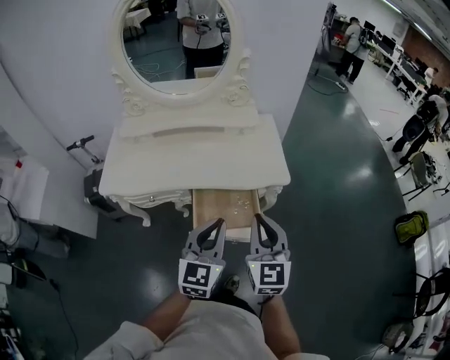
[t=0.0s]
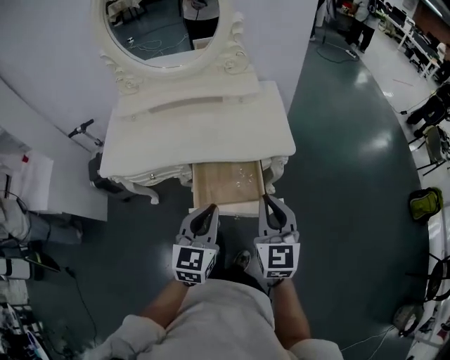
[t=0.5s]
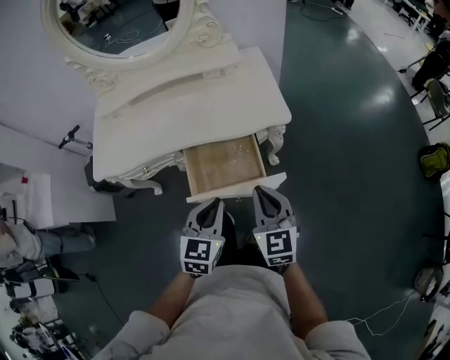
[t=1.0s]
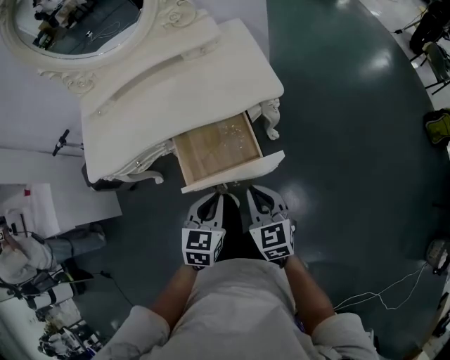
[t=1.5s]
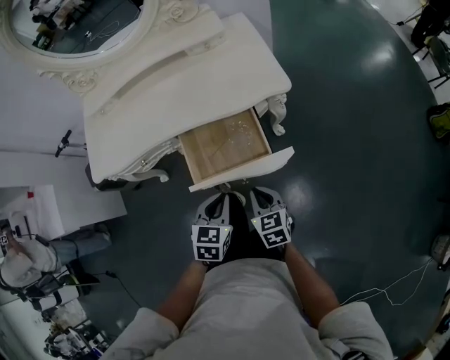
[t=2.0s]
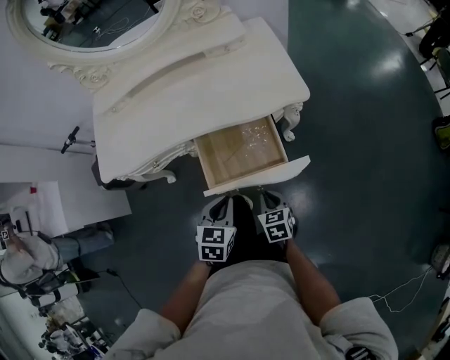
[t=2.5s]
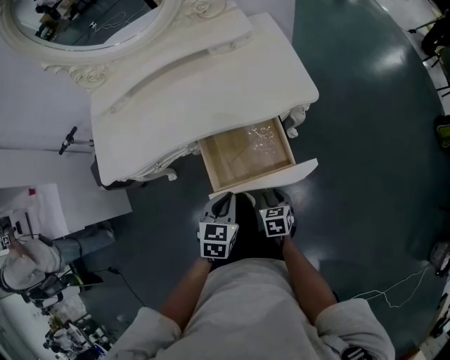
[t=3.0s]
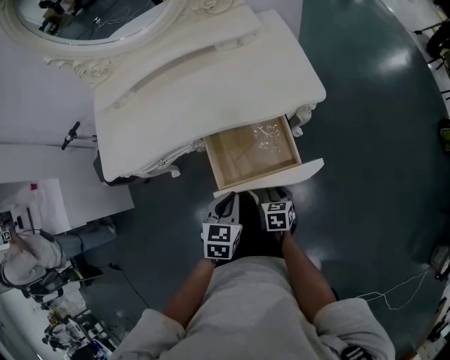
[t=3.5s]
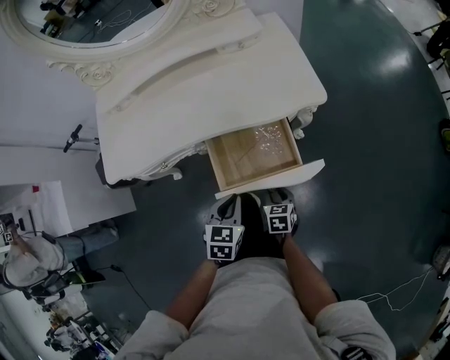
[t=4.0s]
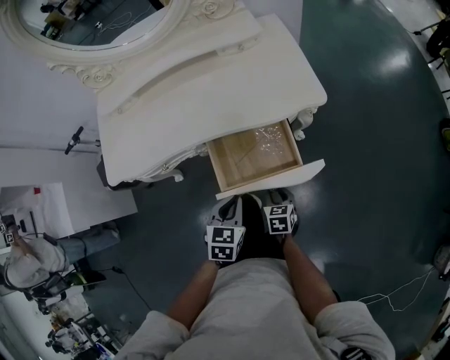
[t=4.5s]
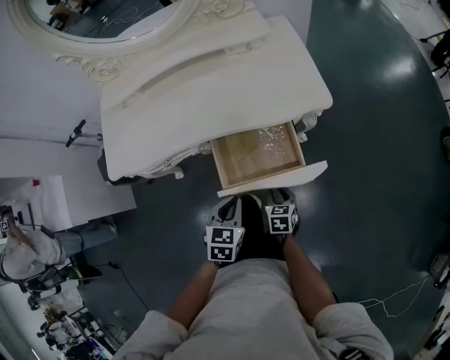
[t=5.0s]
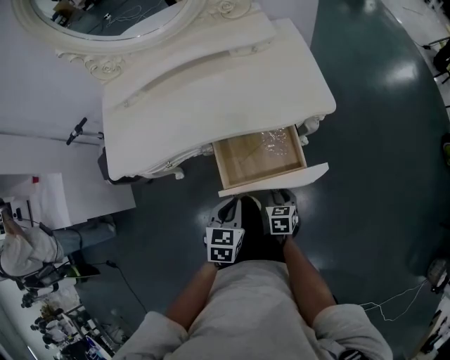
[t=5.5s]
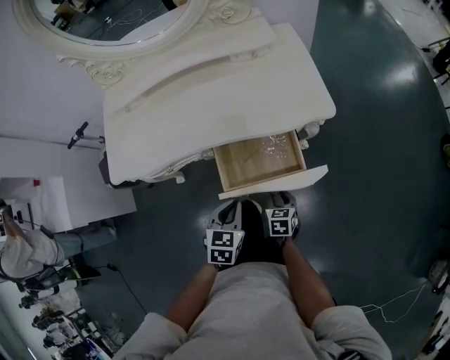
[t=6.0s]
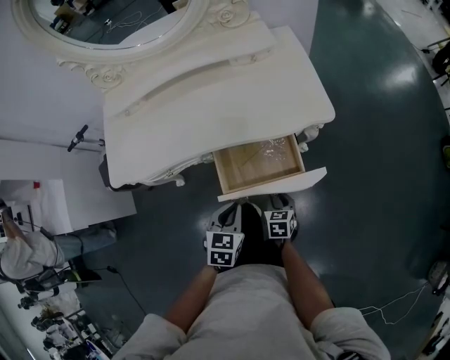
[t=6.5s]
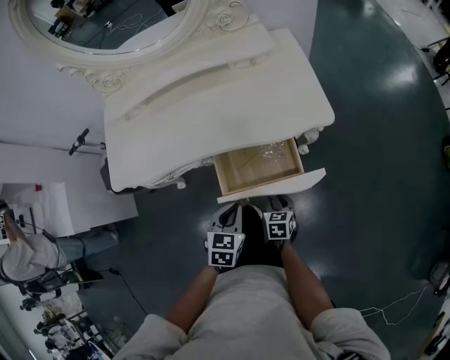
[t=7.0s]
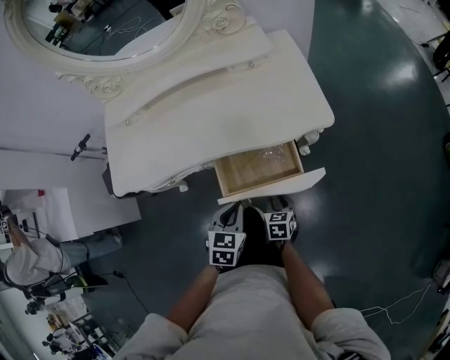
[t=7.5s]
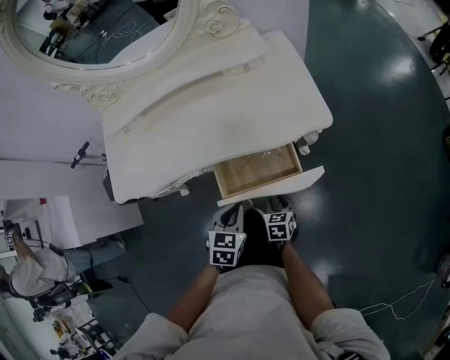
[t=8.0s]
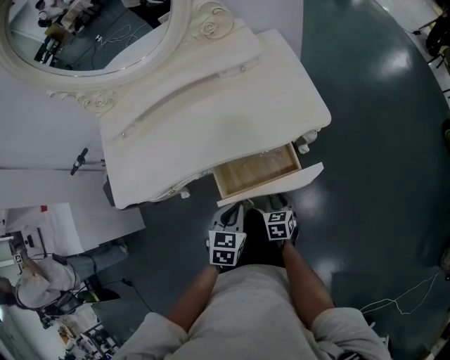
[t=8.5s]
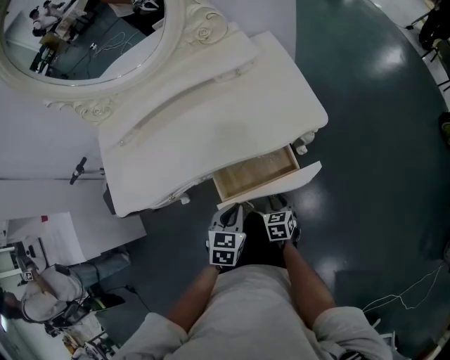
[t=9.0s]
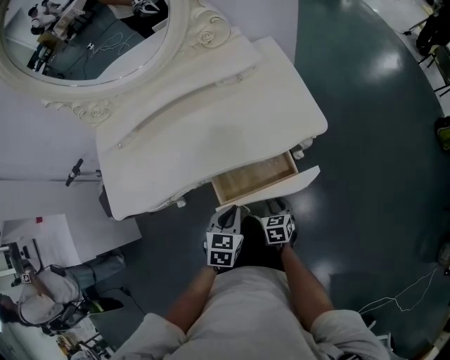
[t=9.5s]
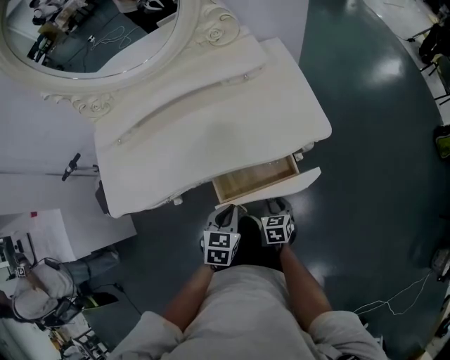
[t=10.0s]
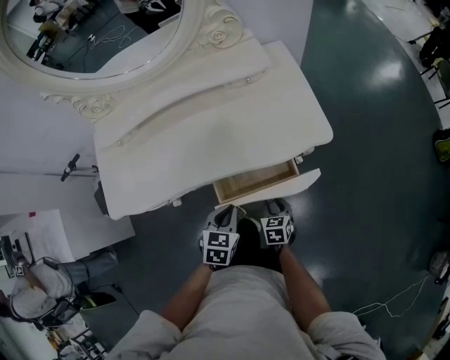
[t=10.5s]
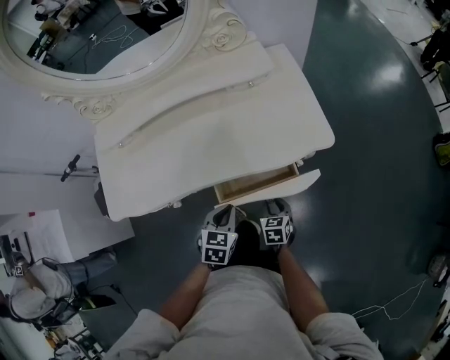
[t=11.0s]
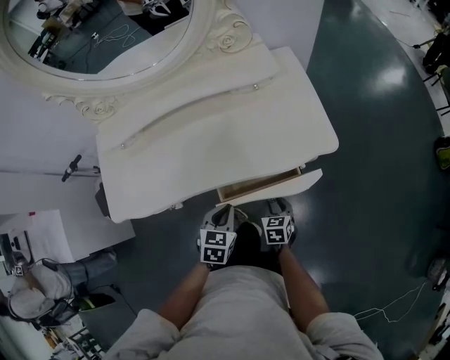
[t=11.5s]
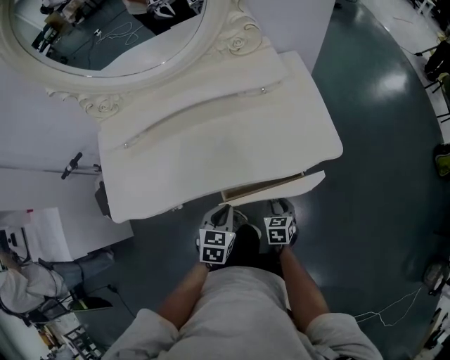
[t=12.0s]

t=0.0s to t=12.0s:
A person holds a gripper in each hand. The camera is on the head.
t=0.0s to t=2.0s: Both grippers travel together downward, some 30 cm. The left gripper tips its fingers downward by some 30 degrees. The right gripper tips its fingers downward by about 30 degrees.
t=2.0s to t=4.0s: The right gripper heads downward, covering some 10 cm, and opens up; the left gripper heads to the left, covering about 5 cm.
t=4.0s to t=8.0s: There are only small adjustments of the grippers.
t=8.0s to t=10.0s: There are only small adjustments of the grippers.
t=10.0s to t=12.0s: The right gripper moves forward, approximately 5 cm; the left gripper ends up approximately 5 cm from where it was.

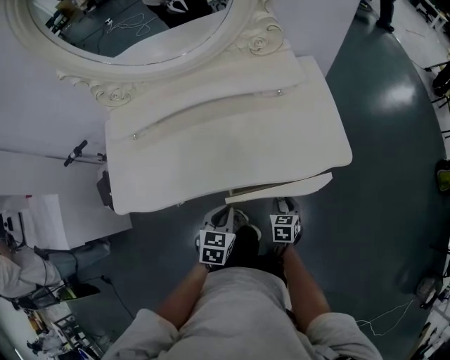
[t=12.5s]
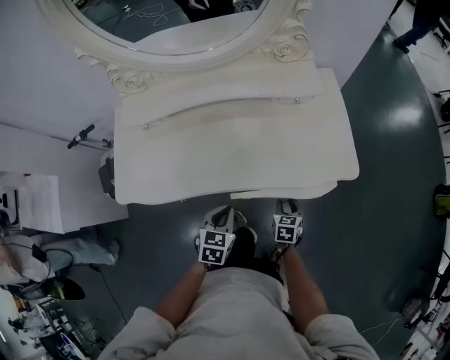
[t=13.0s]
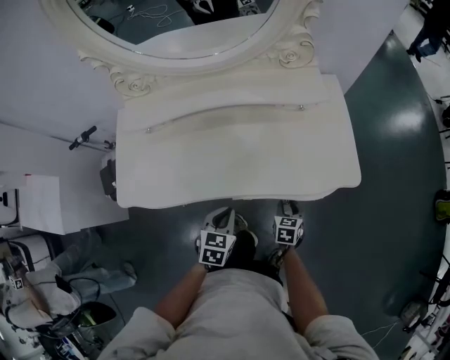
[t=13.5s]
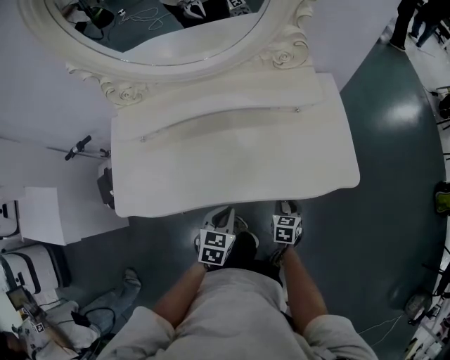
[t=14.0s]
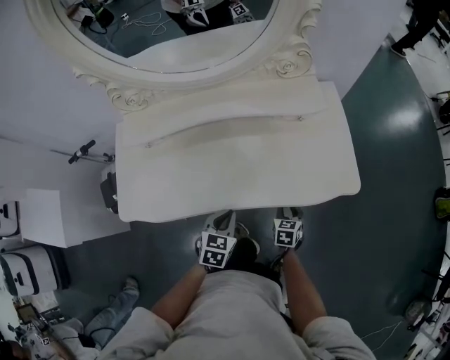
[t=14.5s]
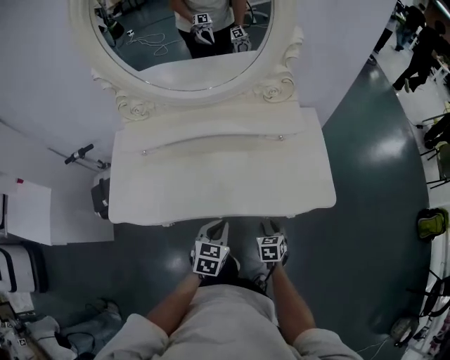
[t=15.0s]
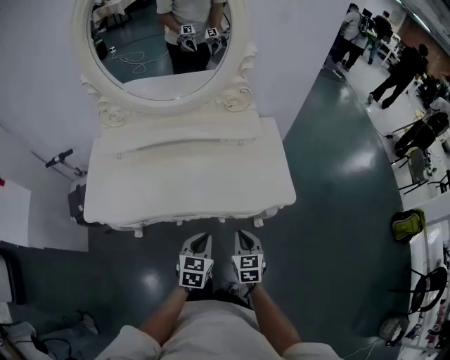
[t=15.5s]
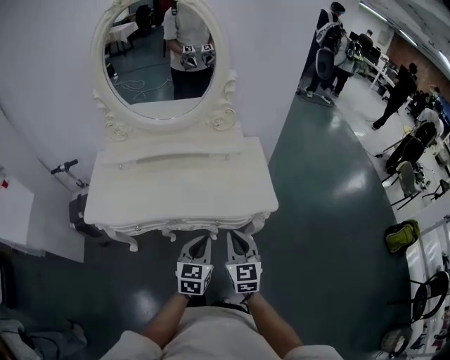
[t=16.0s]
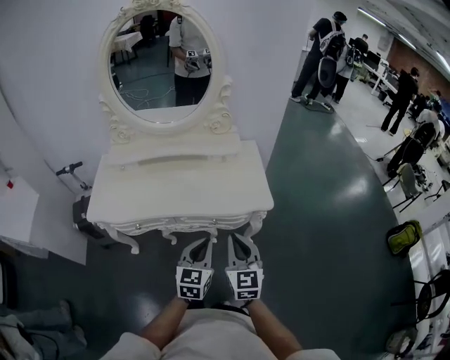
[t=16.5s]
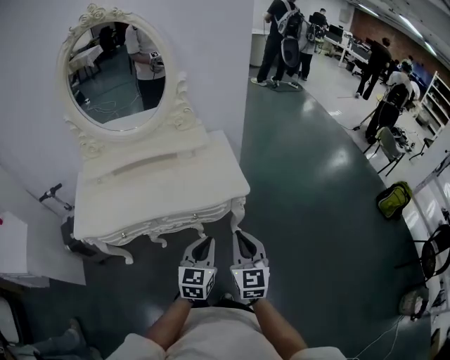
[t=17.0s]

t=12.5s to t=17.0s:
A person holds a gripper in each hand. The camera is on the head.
t=12.5s to t=14.5s: The right gripper heads forward, covering about 5 cm. The left gripper changes place by about 5 cm.
t=14.5s to t=17.0s: The left gripper moves to the right, upward and backward, approximately 40 cm, and tips its fingers upward by about 30 degrees; the right gripper travels upward, backward and to the right by approximately 50 cm, angles its fingers upward, by some 40 degrees, and closes its fingers.

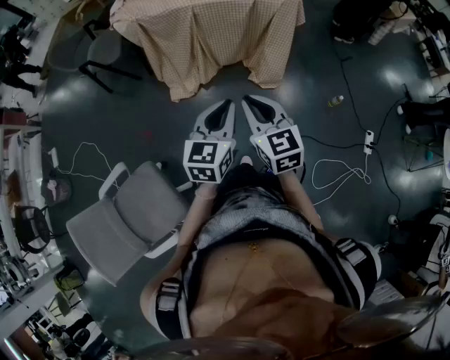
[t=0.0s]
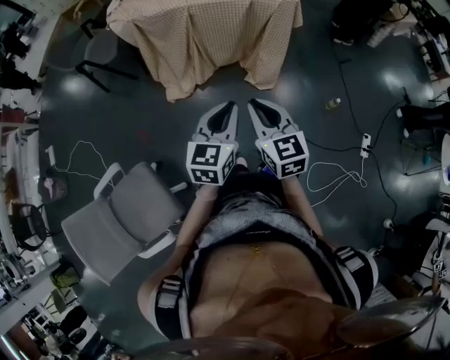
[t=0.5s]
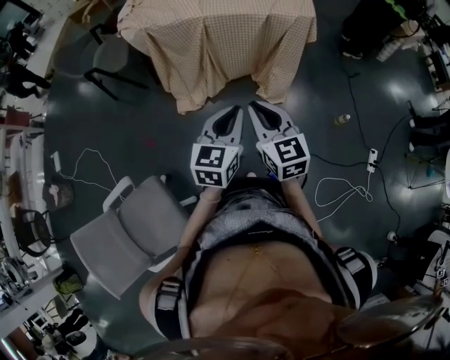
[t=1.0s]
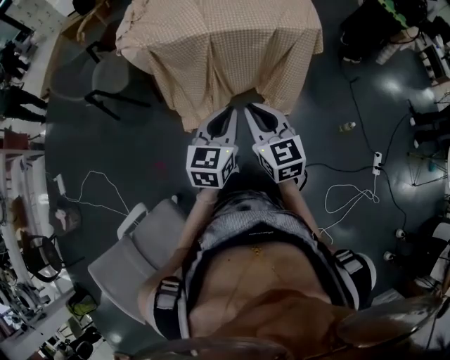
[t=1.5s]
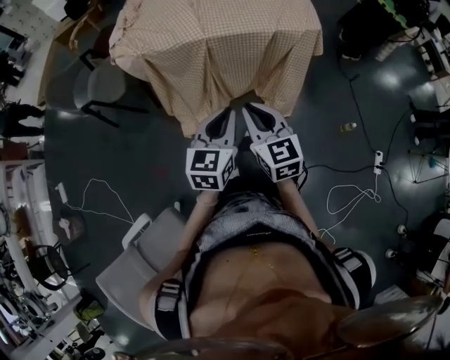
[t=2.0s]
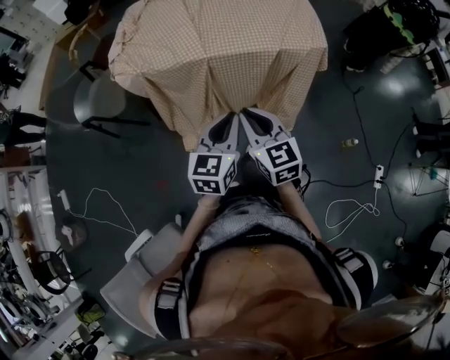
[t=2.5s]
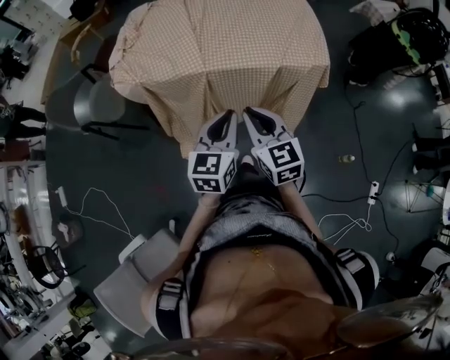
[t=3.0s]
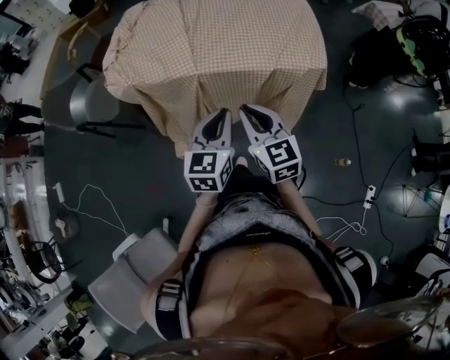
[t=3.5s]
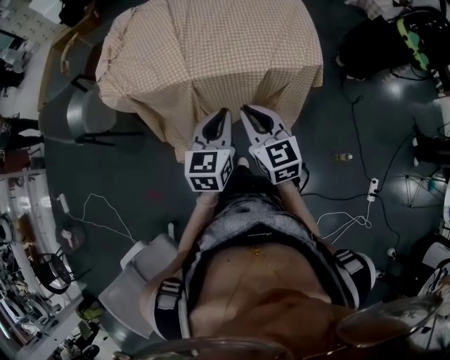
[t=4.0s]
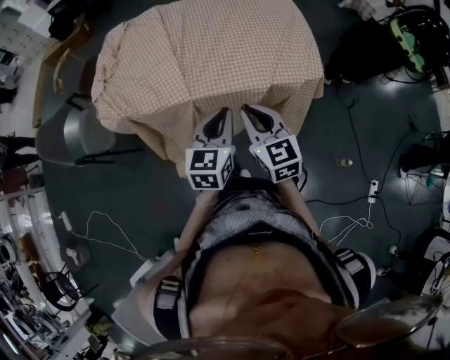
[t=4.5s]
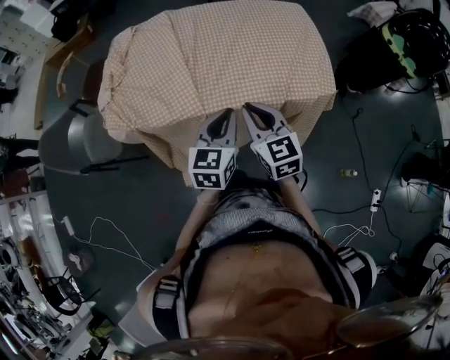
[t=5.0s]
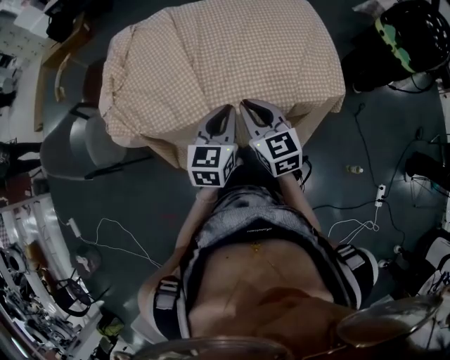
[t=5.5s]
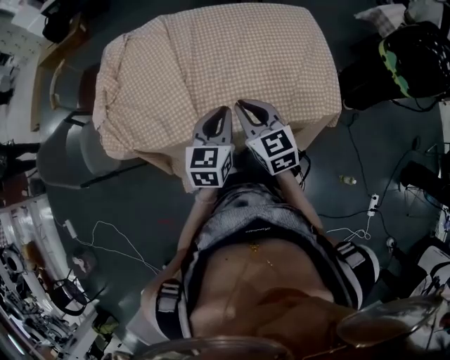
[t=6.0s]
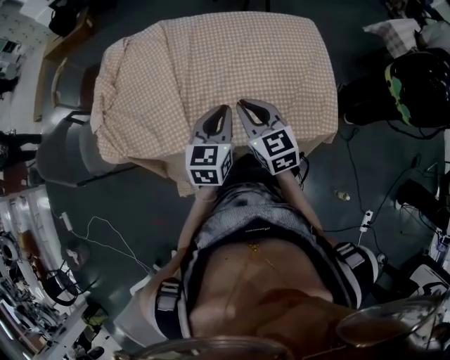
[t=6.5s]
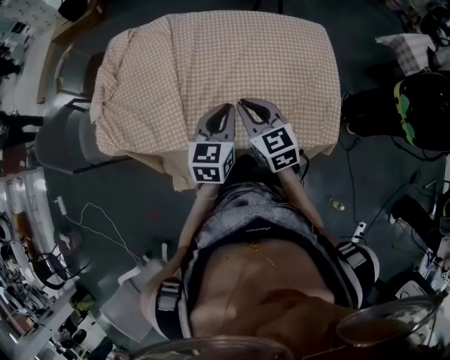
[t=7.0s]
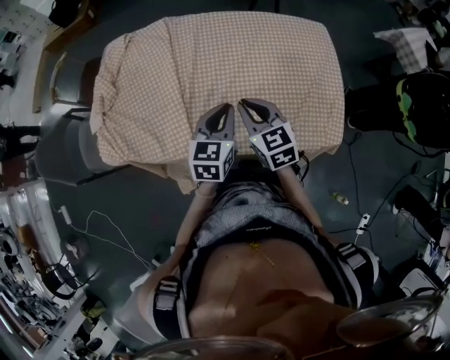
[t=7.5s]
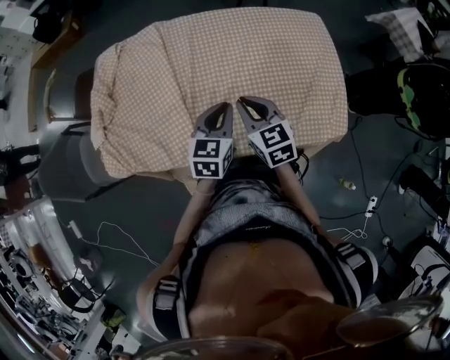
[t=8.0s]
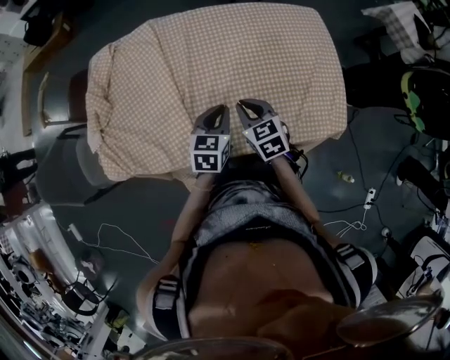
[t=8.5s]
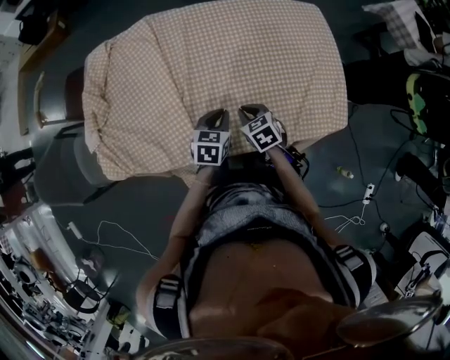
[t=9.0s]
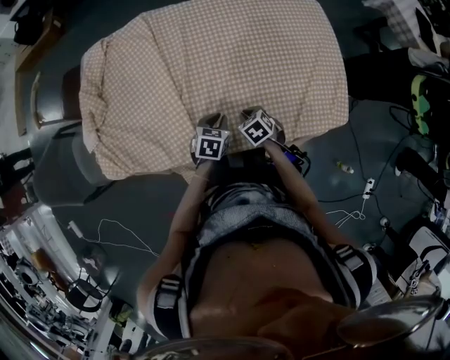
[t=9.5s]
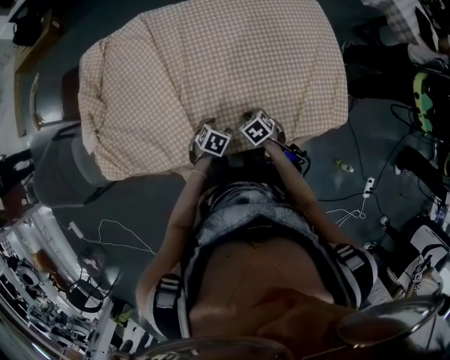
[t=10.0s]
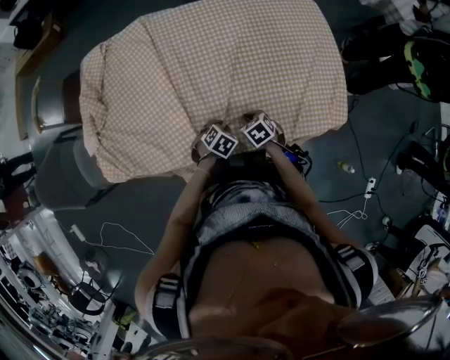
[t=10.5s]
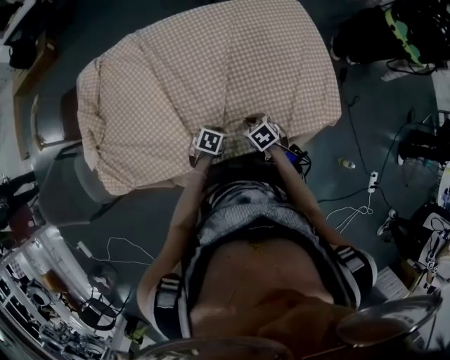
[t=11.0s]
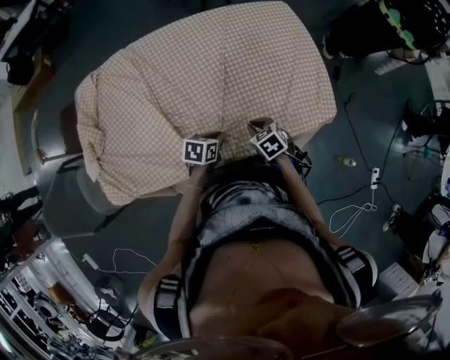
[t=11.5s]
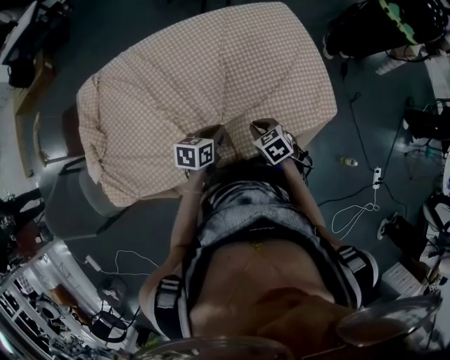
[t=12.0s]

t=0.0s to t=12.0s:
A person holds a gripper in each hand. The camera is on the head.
t=0.0s to t=2.0s: The grippers both shift forward and to the left by some 25 cm.
t=2.0s to t=4.0s: The right gripper heads forward and to the right, covering about 25 cm, while the left gripper heads forward, covering some 25 cm.
t=4.0s to t=6.0s: Both grippers move forward, about 30 cm.
t=6.0s to t=8.0s: The grippers both shift forward by approximately 15 cm.
t=8.0s to t=10.0s: The grippers both shift downward by some 25 cm. The left gripper angles its fingers downward, by roughly 40 degrees, and opens its fingers, while the right gripper tilts its fingers some 40 degrees downward.
t=10.0s to t=12.0s: Both grippers travel together upward, some 10 cm. The left gripper swivels about 30 degrees, and closes up.
